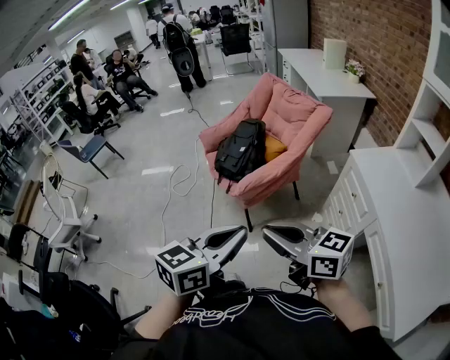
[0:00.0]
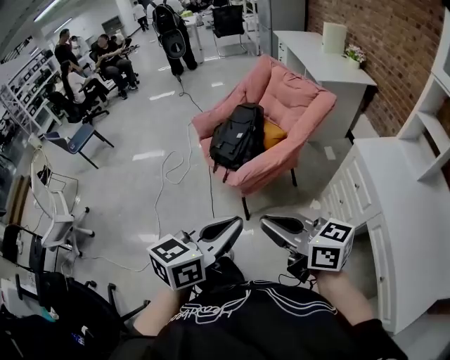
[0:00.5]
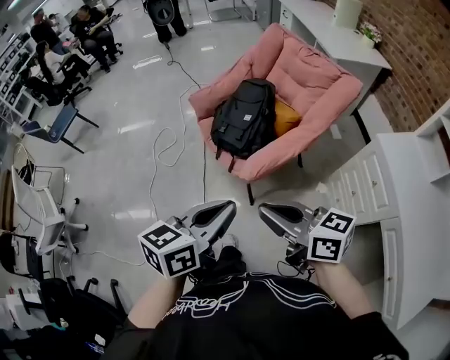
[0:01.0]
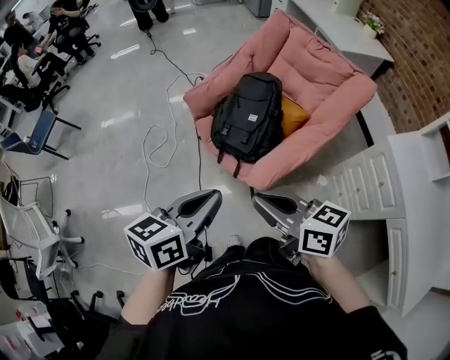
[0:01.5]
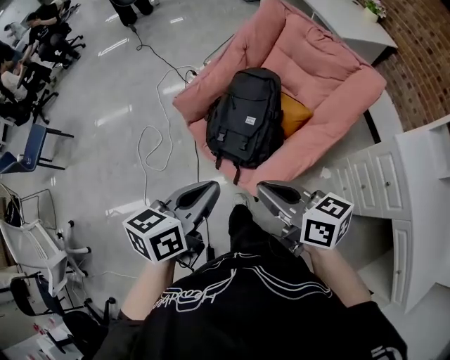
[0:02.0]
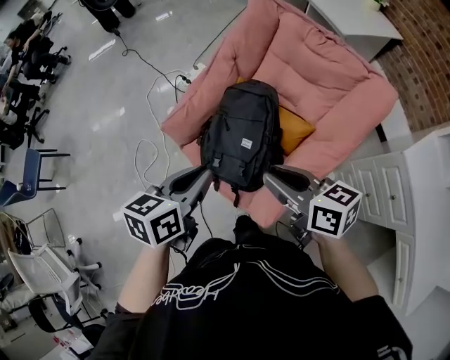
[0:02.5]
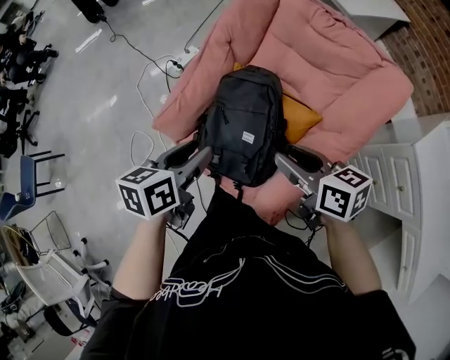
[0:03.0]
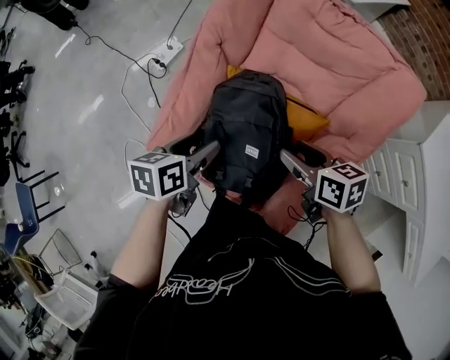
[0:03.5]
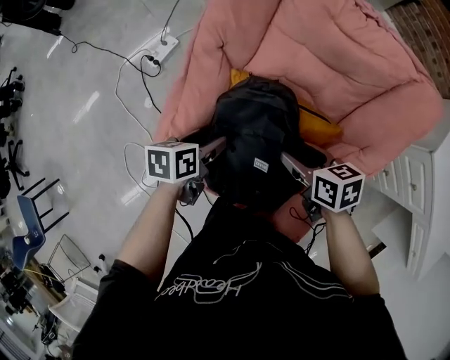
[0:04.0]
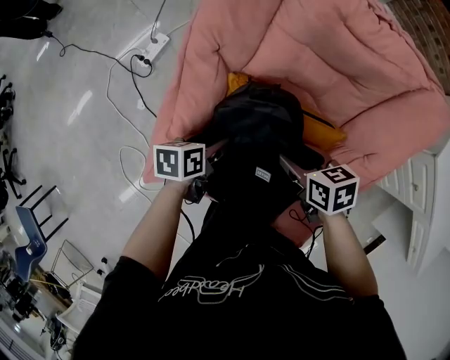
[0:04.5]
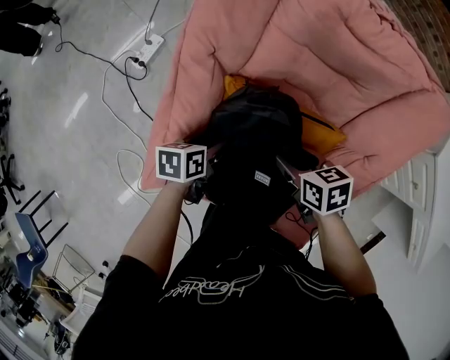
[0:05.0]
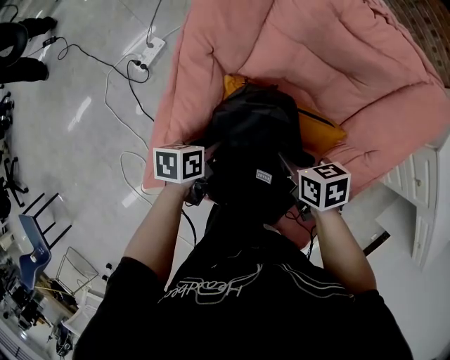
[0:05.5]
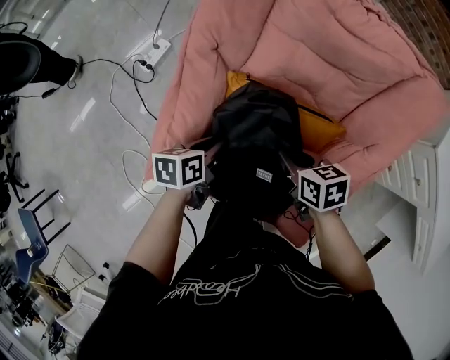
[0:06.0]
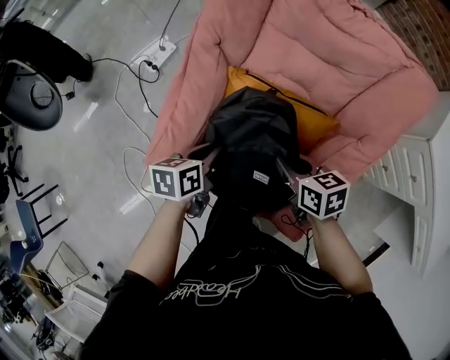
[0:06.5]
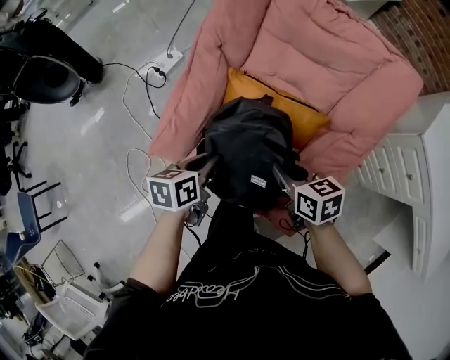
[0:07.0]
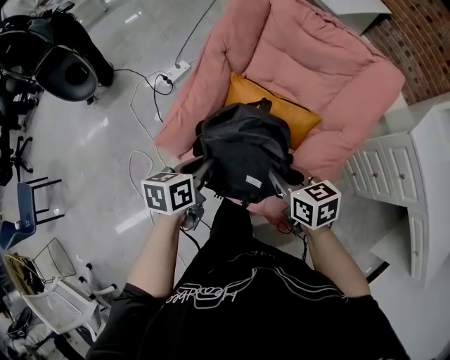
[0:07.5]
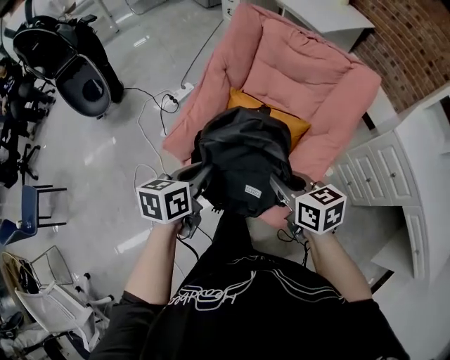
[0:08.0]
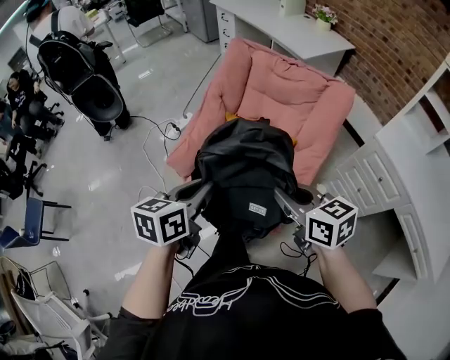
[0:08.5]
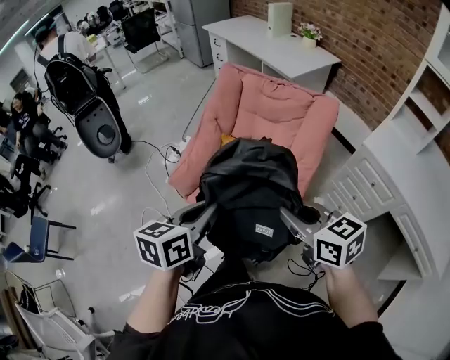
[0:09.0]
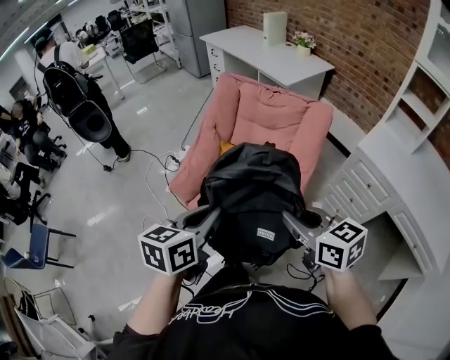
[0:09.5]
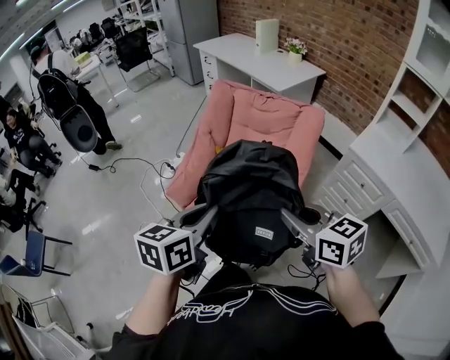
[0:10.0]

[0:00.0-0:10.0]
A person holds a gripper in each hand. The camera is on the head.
0:00.0 to 0:02.0: The two grippers travel together, forward and to the left, approximately 40 cm. The right gripper turns by some 30 degrees.
0:02.0 to 0:04.0: The left gripper moves some 50 cm, swivels some 40 degrees, and opens up. The right gripper shifts by approximately 40 cm, tips its fingers downward by about 30 degrees, and opens up.
0:04.0 to 0:06.0: The right gripper closes up. The left gripper closes.
0:06.0 to 0:08.0: The grippers both shift upward and backward by approximately 25 cm. The left gripper swivels approximately 20 degrees; the right gripper rotates some 30 degrees.
0:08.0 to 0:10.0: The two grippers go approximately 25 cm upward and backward.

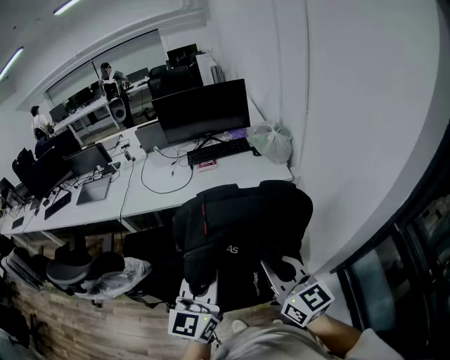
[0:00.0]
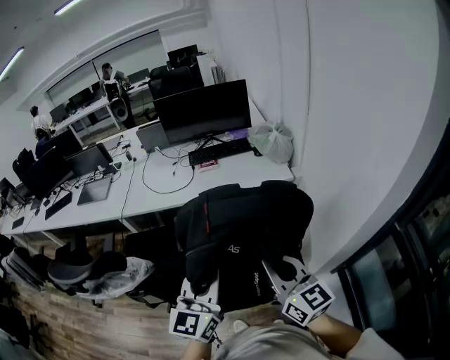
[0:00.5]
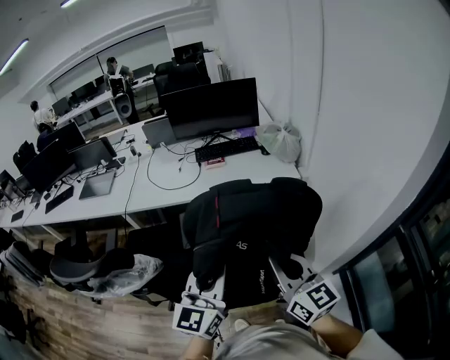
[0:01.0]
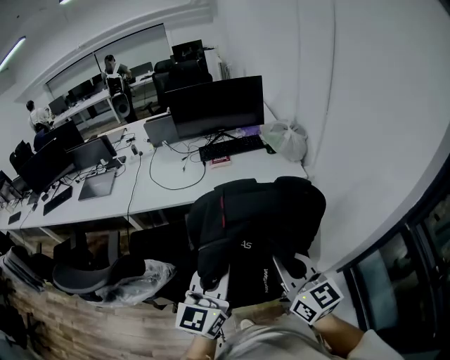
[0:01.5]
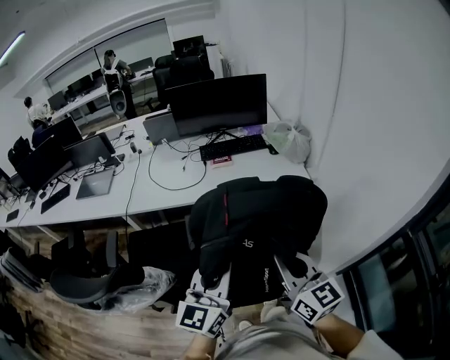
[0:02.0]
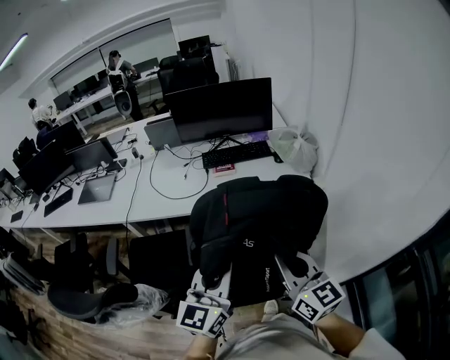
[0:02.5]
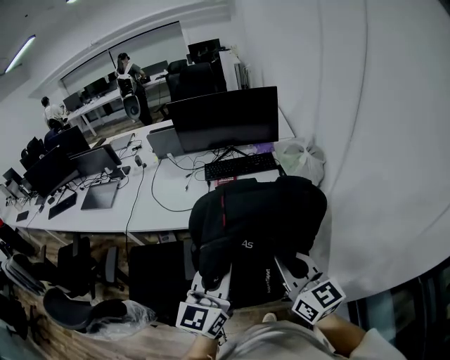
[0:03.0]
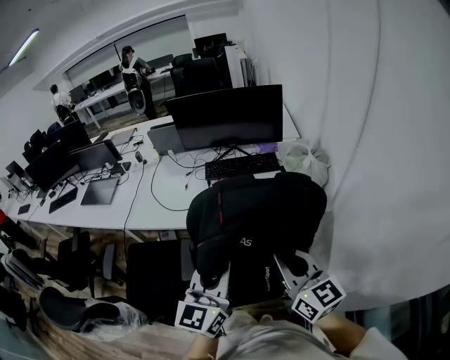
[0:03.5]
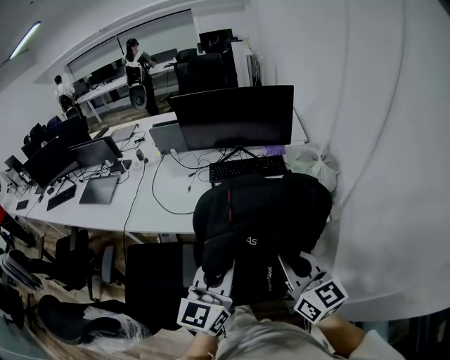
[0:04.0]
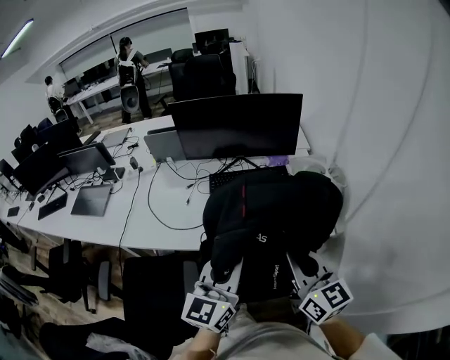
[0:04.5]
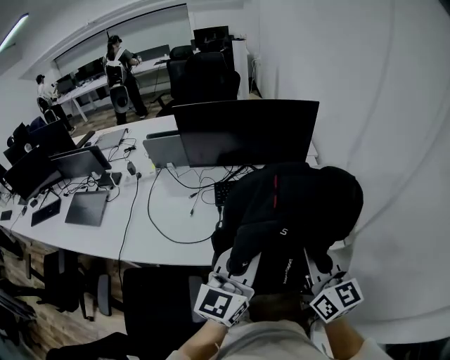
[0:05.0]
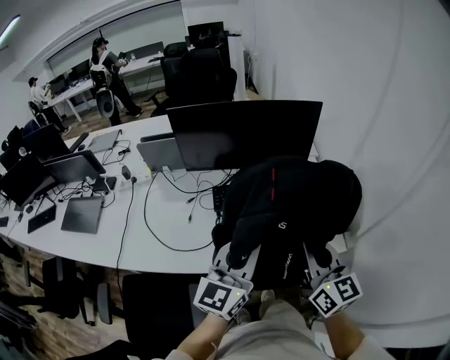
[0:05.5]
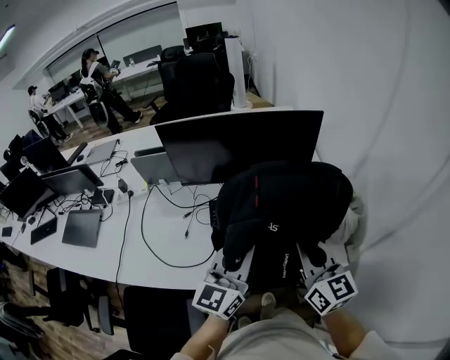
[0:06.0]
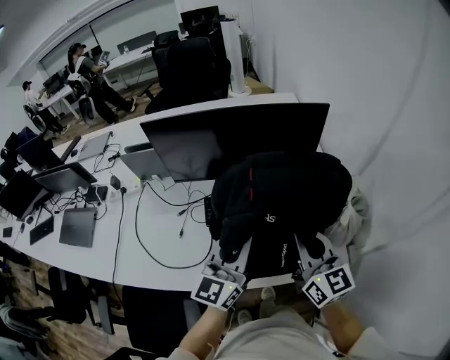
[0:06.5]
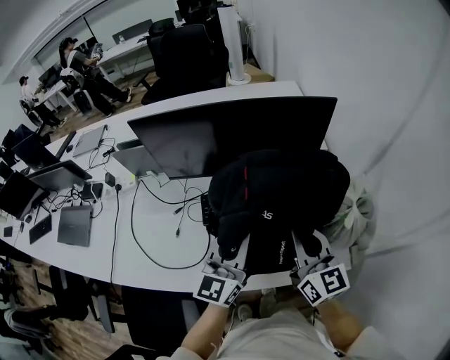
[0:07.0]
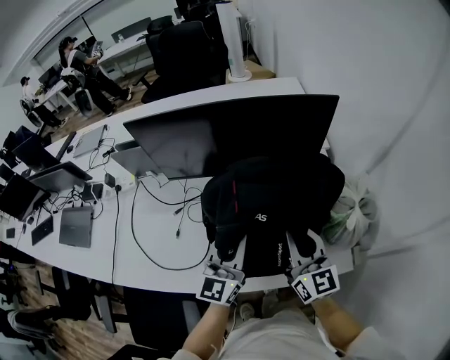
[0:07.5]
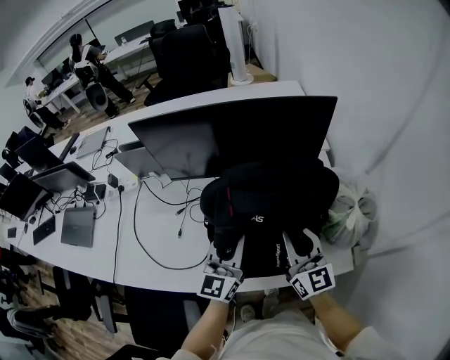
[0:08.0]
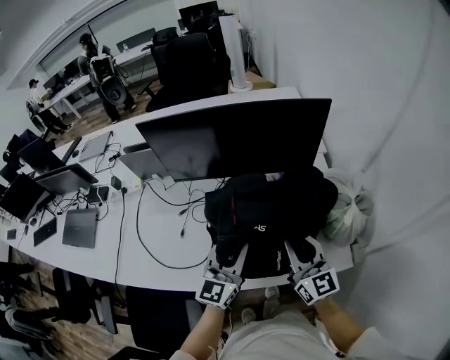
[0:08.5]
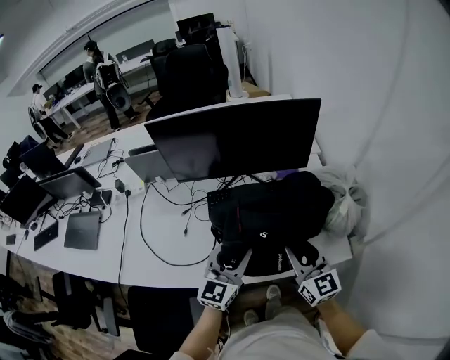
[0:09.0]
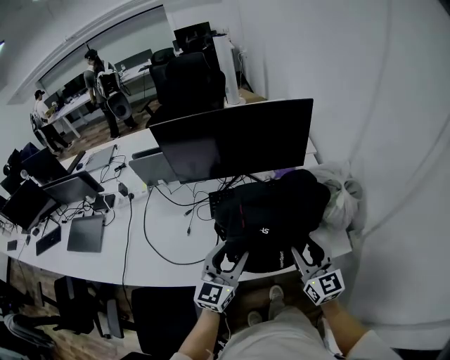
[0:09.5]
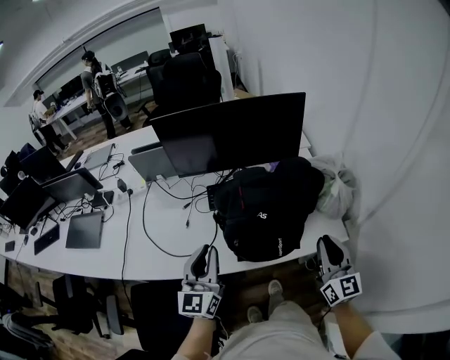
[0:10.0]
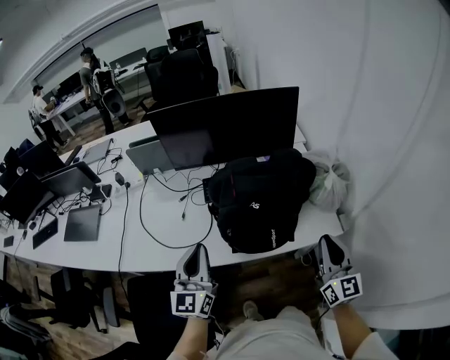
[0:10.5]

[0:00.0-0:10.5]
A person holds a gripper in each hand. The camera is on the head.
0:00.0 to 0:02.0: The grippers both shift to the left and forward by approximately 10 cm.
0:02.0 to 0:04.0: Both grippers move forward, roughly 25 cm.
0:04.0 to 0:06.5: The two grippers go approximately 40 cm forward.
0:06.5 to 0:08.5: Both grippers move downward, some 10 cm.
0:08.5 to 0:10.5: The right gripper travels backward and to the right by about 20 cm, and opens, then closes again. The left gripper moves backward and to the left, roughly 20 cm, and opens, then closes again.

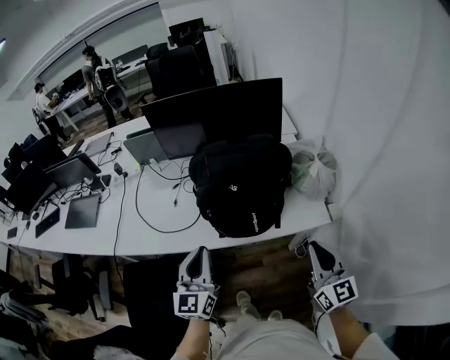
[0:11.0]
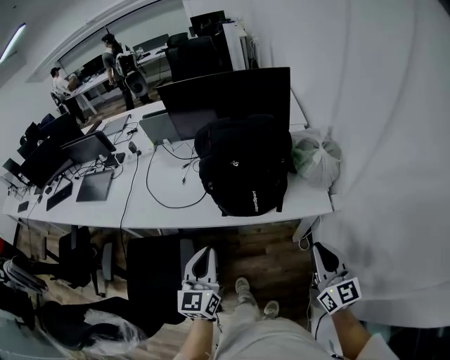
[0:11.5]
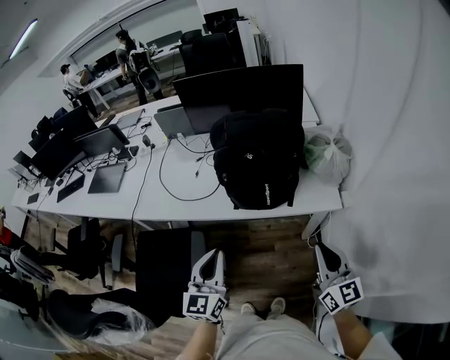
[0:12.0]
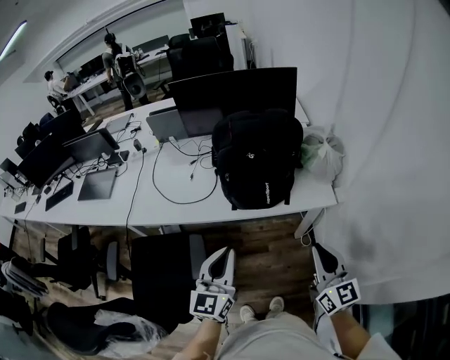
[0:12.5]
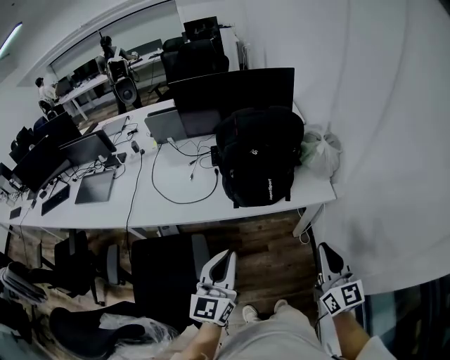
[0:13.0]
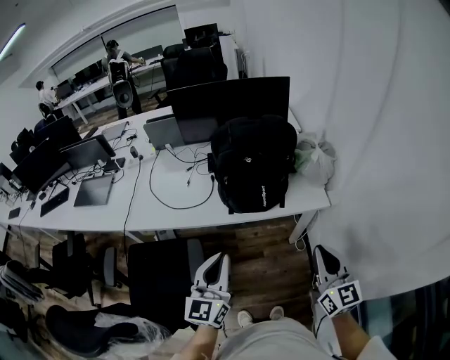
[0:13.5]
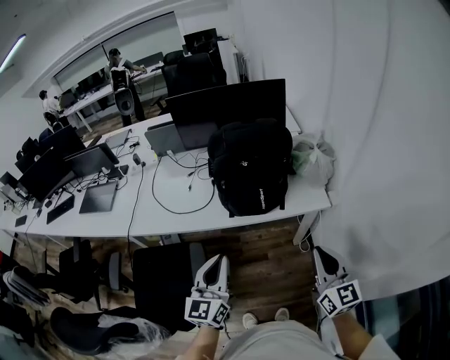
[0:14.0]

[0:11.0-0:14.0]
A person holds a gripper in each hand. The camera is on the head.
0:11.0 to 0:12.5: The grippers both shift backward by about 15 cm.
0:12.5 to 0:14.0: The grippers make only small movements.

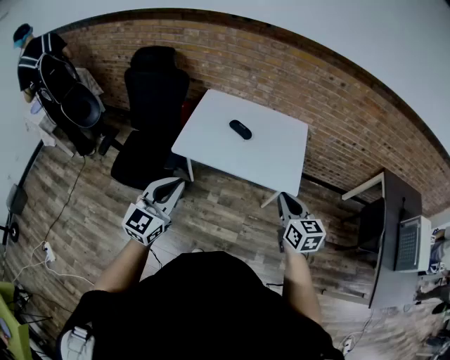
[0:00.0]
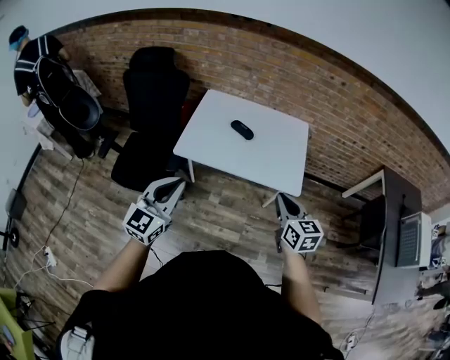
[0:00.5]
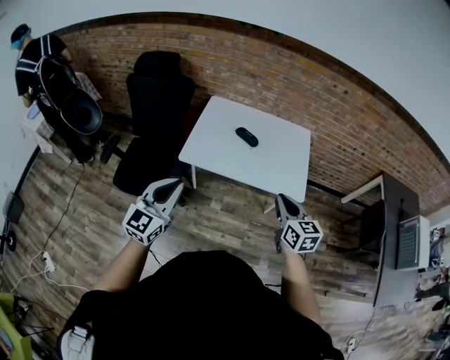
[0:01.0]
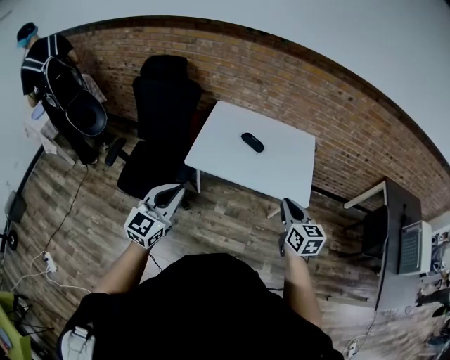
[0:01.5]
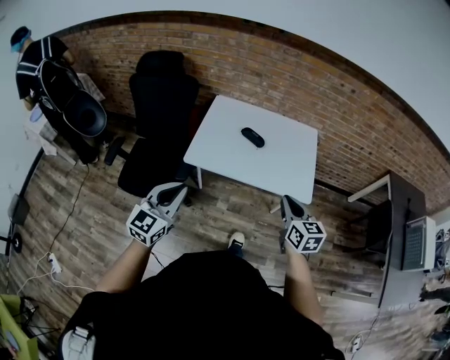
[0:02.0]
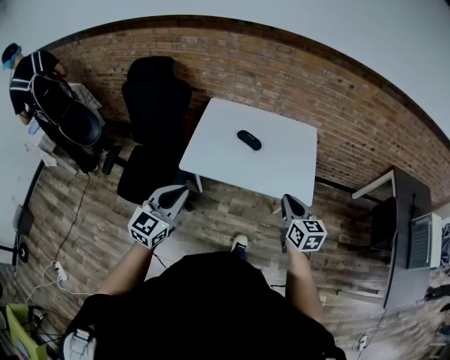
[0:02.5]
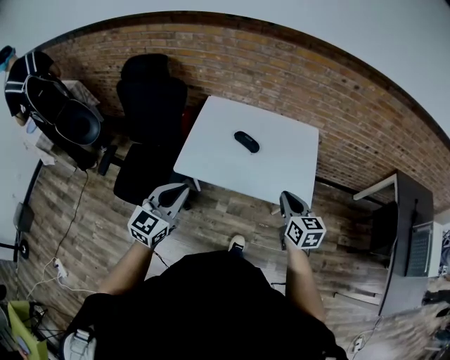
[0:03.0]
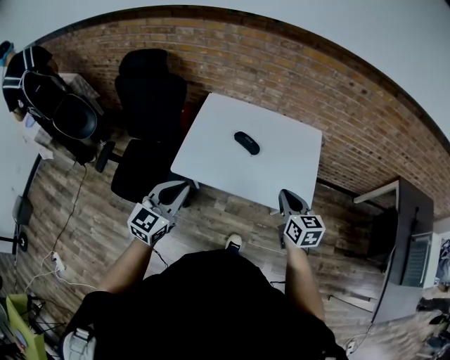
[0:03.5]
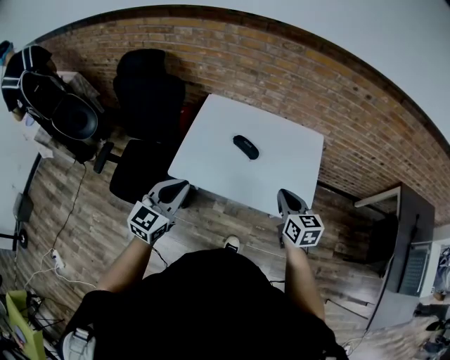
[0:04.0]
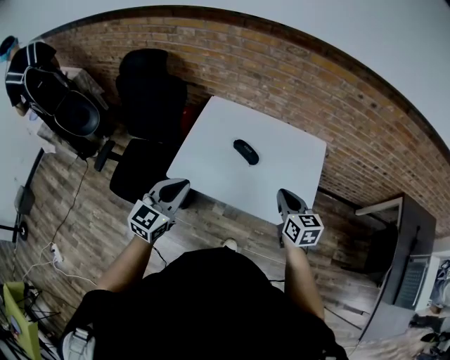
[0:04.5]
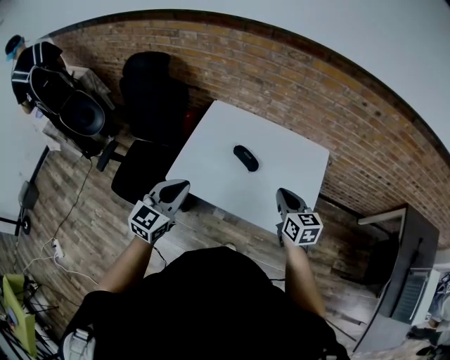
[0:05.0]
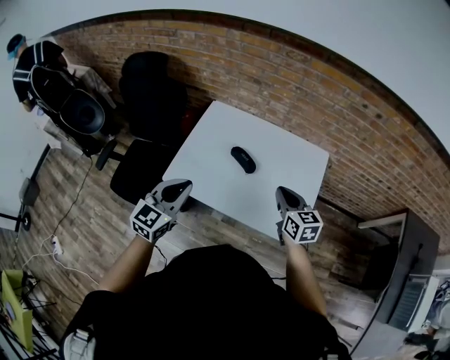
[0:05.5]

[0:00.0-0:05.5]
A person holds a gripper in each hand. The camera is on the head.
0:00.0 to 0:02.0: Both grippers travel together to the left, approximately 10 cm.
0:02.0 to 0:03.5: The left gripper is displaced forward and to the right by about 15 cm. The right gripper shifts about 15 cm forward.
0:03.5 to 0:05.5: The left gripper goes roughly 15 cm forward and to the right; the right gripper is displaced forward by about 15 cm.
